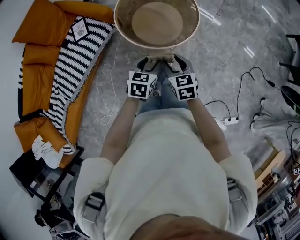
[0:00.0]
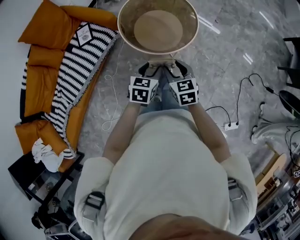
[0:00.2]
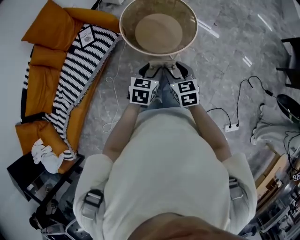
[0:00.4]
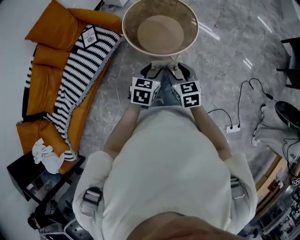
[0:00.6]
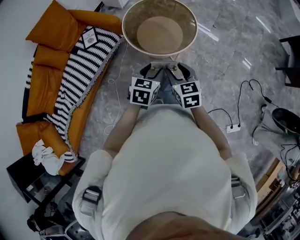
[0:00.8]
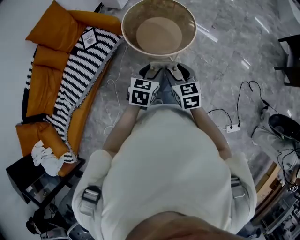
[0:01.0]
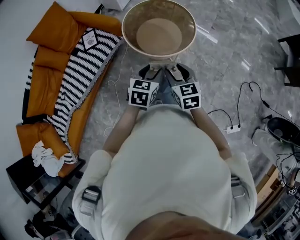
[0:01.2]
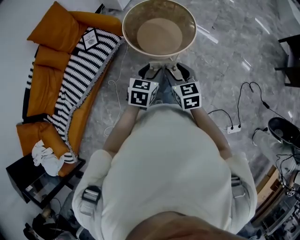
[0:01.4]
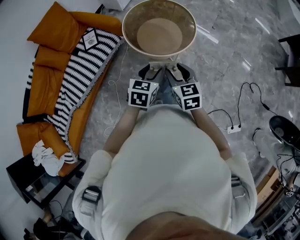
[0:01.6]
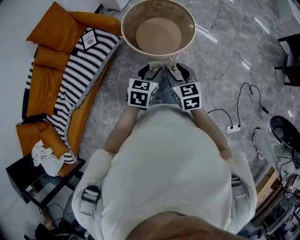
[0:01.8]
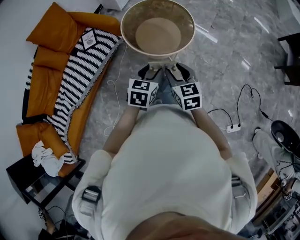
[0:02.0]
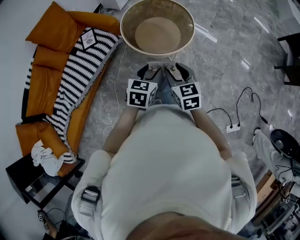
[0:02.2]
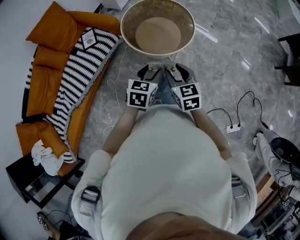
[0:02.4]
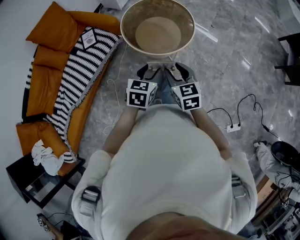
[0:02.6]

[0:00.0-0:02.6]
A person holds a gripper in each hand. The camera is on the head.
0:00.0 to 0:01.2: The two grippers go roughly 10 cm upward and backward.
0:01.2 to 0:02.6: Both grippers stay about where they are.

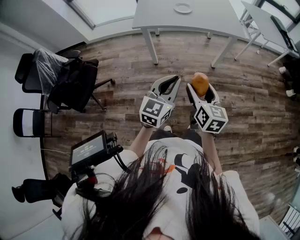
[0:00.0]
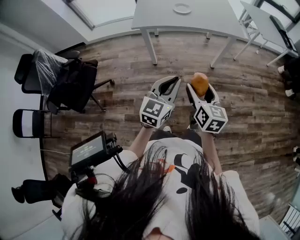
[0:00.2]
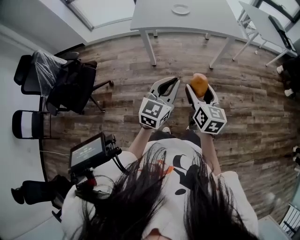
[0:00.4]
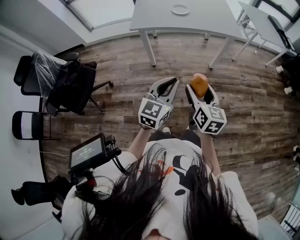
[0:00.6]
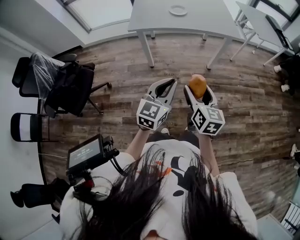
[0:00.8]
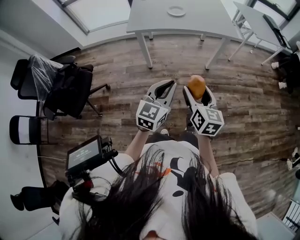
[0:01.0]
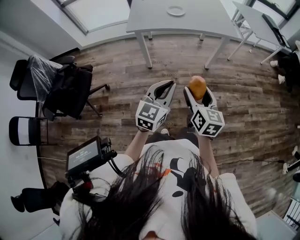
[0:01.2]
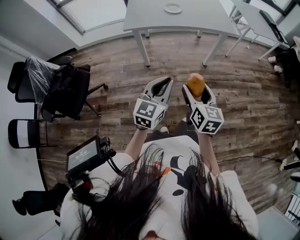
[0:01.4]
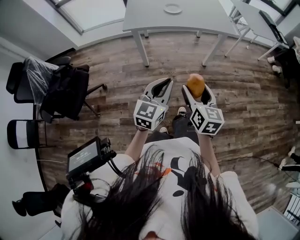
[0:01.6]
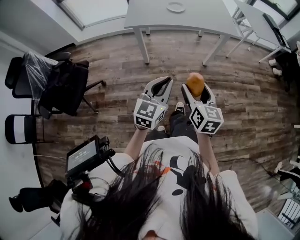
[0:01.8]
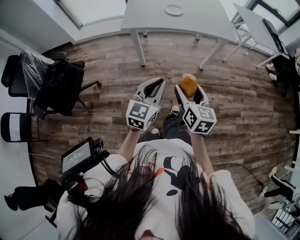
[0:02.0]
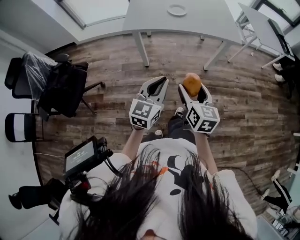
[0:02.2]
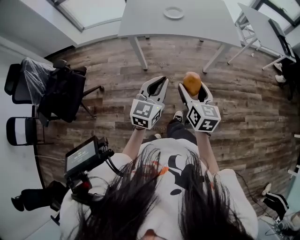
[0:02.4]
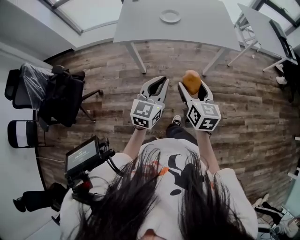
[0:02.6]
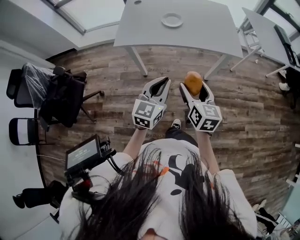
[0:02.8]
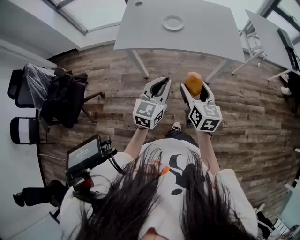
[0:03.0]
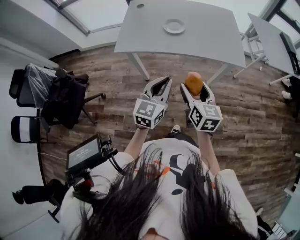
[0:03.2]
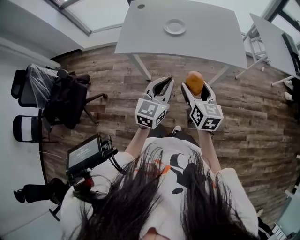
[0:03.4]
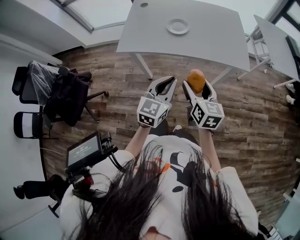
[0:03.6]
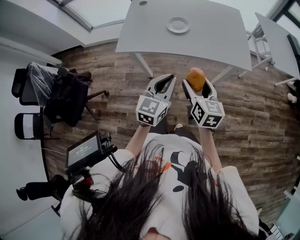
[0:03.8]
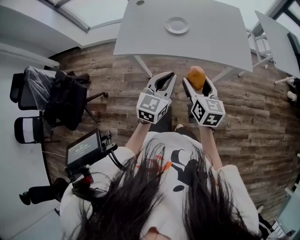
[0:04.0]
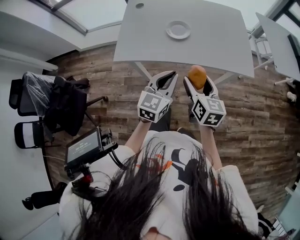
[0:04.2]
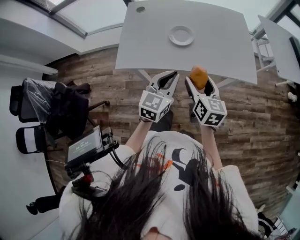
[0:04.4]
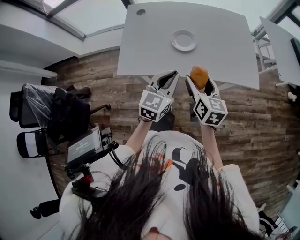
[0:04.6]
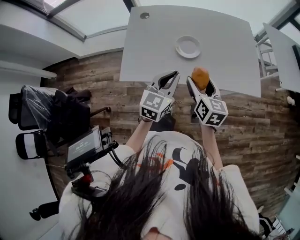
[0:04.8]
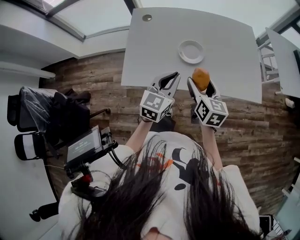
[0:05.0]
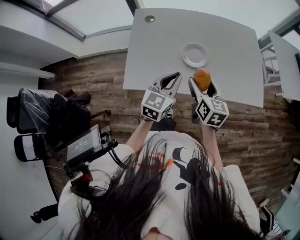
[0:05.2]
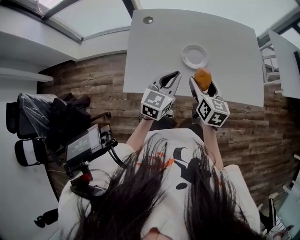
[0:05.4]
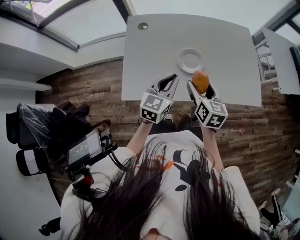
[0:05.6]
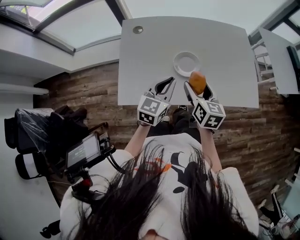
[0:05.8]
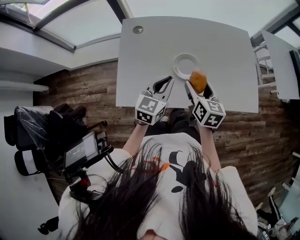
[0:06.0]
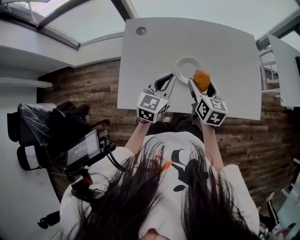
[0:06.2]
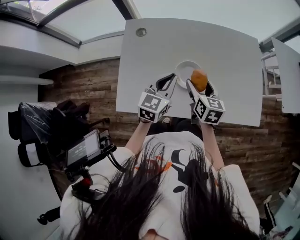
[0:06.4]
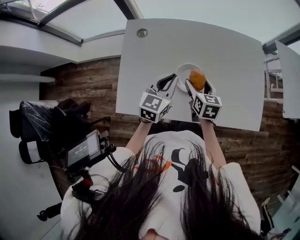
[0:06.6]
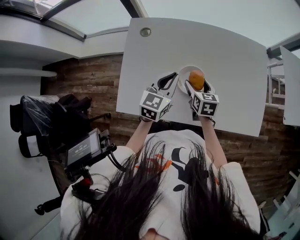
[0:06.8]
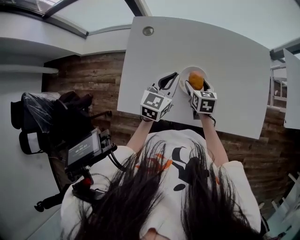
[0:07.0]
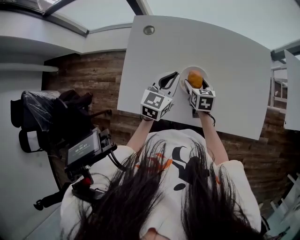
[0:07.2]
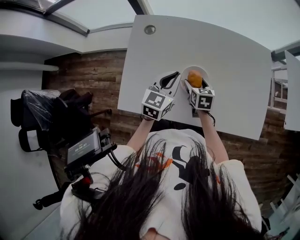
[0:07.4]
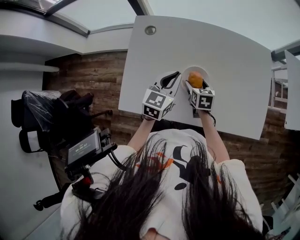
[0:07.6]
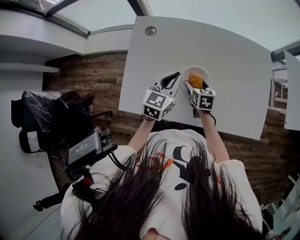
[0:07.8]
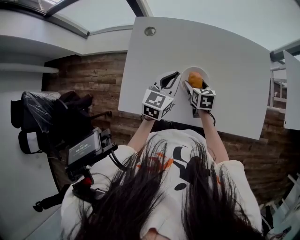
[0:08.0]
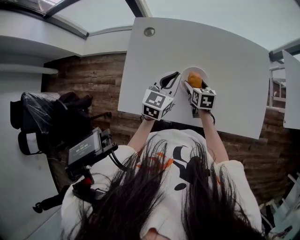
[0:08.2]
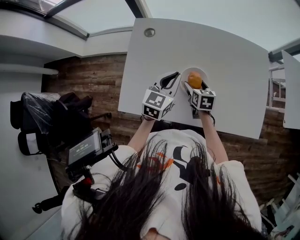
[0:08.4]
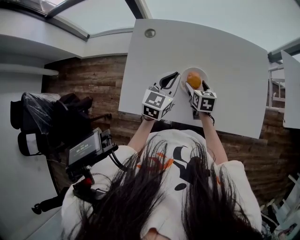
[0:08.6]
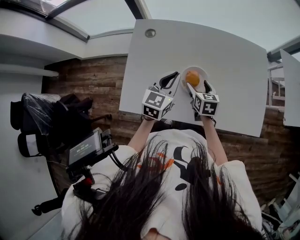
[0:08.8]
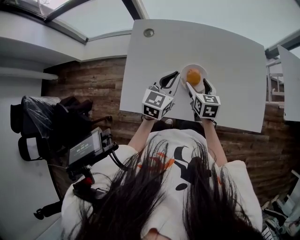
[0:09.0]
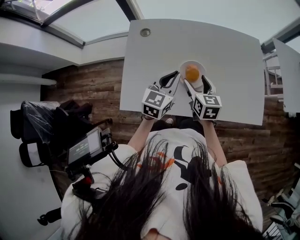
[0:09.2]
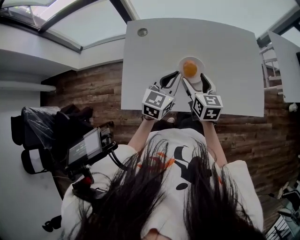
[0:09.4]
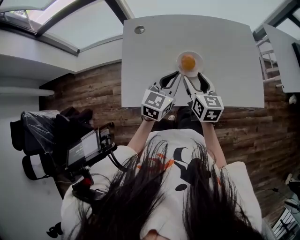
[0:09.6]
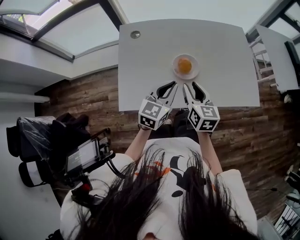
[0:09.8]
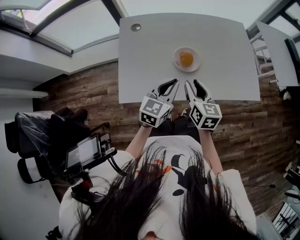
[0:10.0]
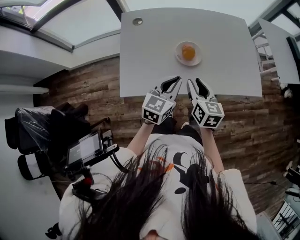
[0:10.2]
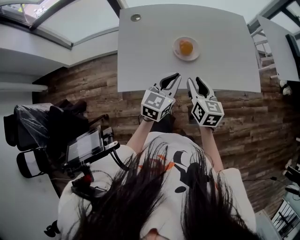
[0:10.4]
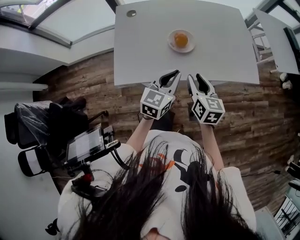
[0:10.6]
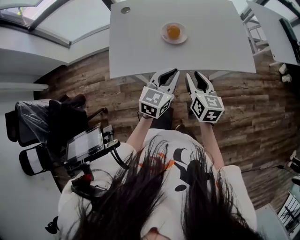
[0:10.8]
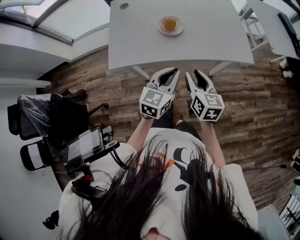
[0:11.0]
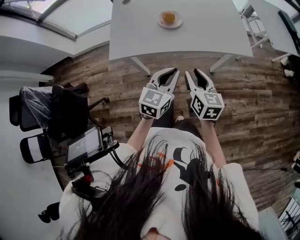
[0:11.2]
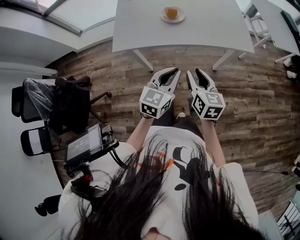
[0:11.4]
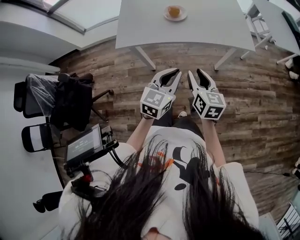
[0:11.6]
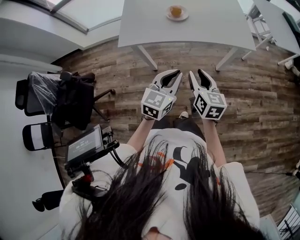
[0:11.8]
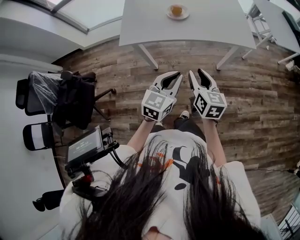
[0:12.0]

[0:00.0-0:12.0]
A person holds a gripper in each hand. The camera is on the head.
0:00.0 to 0:01.6: The grippers move only a little.
0:01.6 to 0:03.0: The two grippers go about 25 cm forward.
0:03.0 to 0:04.4: Both grippers travel together forward, some 20 cm.
0:04.4 to 0:06.0: The left gripper shifts roughly 20 cm forward and to the left. Meanwhile the right gripper heads forward, covering roughly 20 cm.
0:06.0 to 0:07.6: The right gripper heads downward and forward, covering roughly 20 cm, and swivels some 30 degrees; the left gripper moves forward, approximately 10 cm.
0:07.6 to 0:09.0: The right gripper shifts some 5 cm upward.
0:09.0 to 0:10.4: The left gripper is displaced backward by about 15 cm. Meanwhile the right gripper travels backward and upward by about 20 cm, and closes up.
0:10.4 to 0:12.0: The grippers both shift backward and to the right by roughly 30 cm.

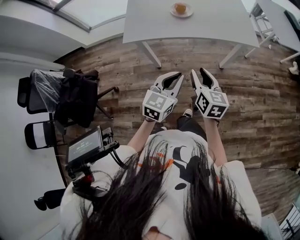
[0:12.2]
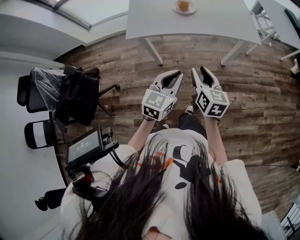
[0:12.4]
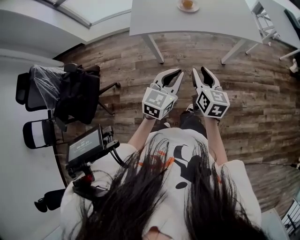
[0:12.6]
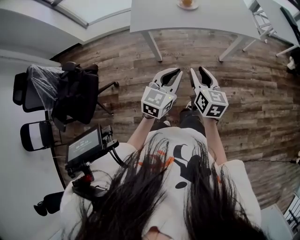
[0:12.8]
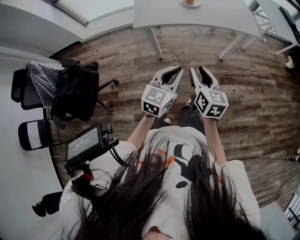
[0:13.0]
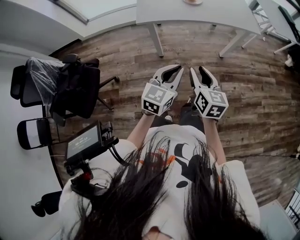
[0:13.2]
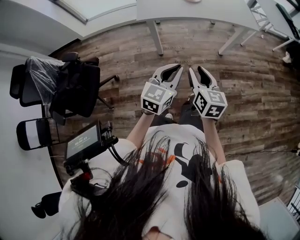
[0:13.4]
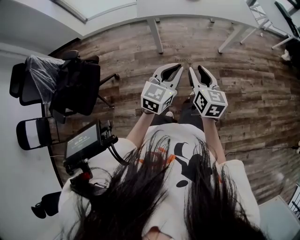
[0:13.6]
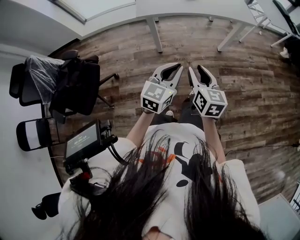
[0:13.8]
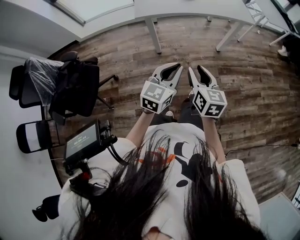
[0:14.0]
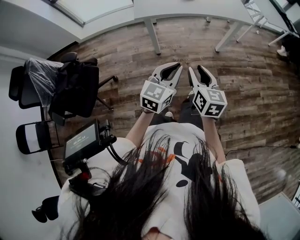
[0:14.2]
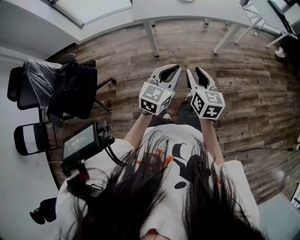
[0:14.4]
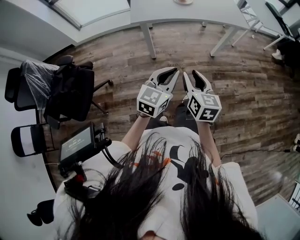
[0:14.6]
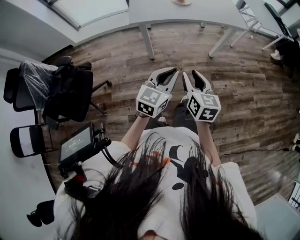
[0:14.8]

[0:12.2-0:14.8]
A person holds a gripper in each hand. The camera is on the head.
0:12.2 to 0:13.4: The two grippers go roughly 25 cm backward and to the left.
0:13.4 to 0:14.8: There are only small adjustments of the grippers.

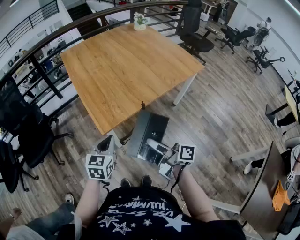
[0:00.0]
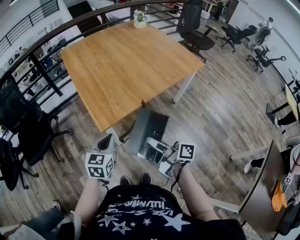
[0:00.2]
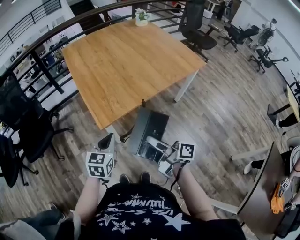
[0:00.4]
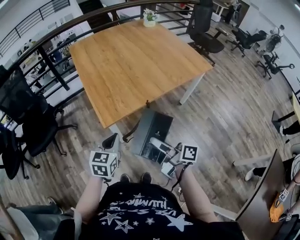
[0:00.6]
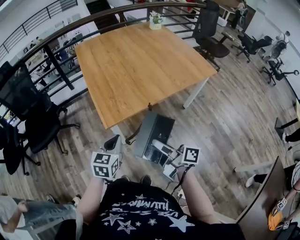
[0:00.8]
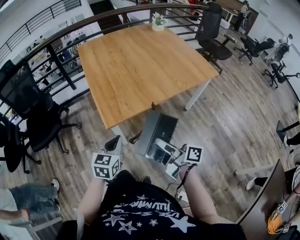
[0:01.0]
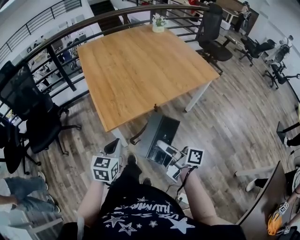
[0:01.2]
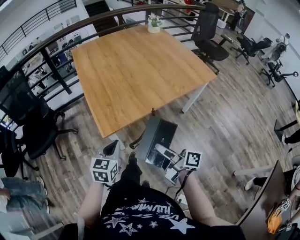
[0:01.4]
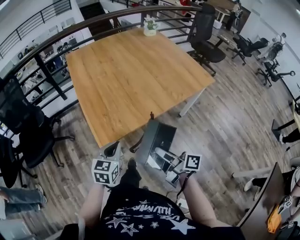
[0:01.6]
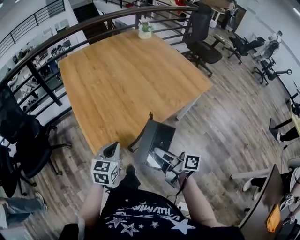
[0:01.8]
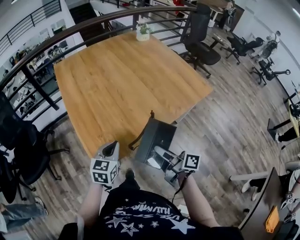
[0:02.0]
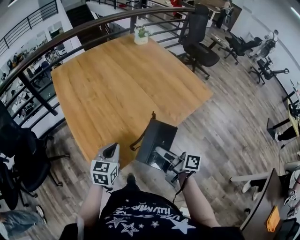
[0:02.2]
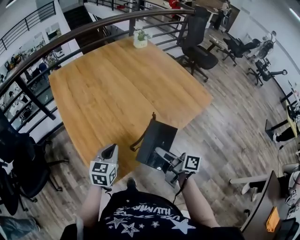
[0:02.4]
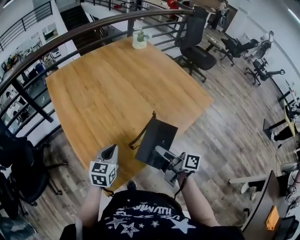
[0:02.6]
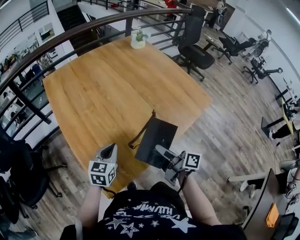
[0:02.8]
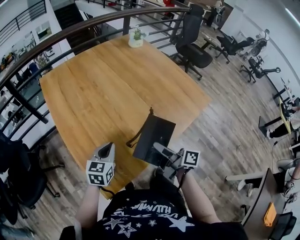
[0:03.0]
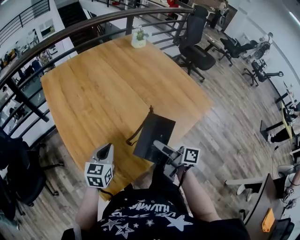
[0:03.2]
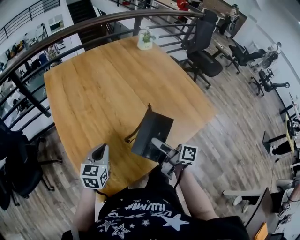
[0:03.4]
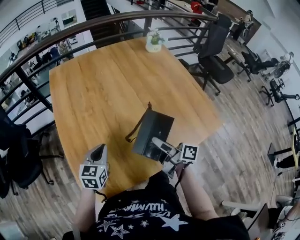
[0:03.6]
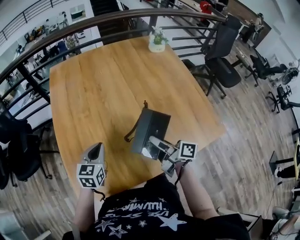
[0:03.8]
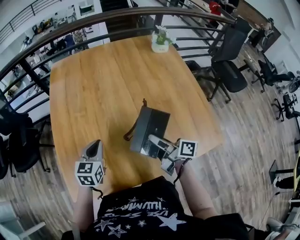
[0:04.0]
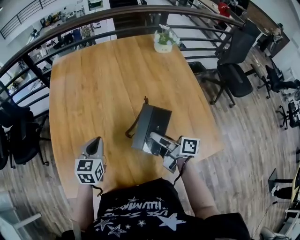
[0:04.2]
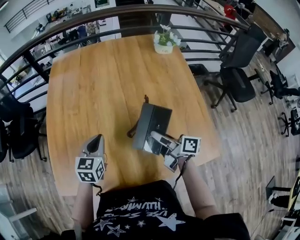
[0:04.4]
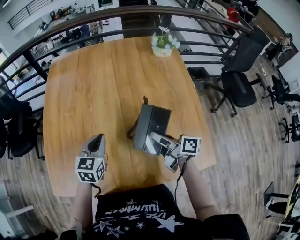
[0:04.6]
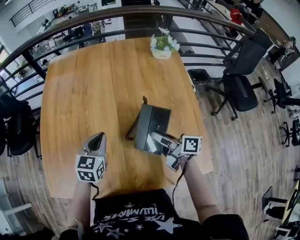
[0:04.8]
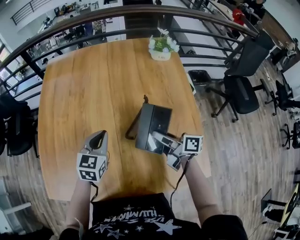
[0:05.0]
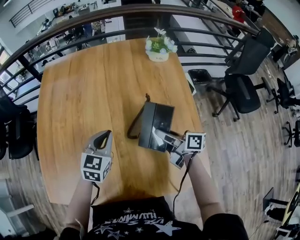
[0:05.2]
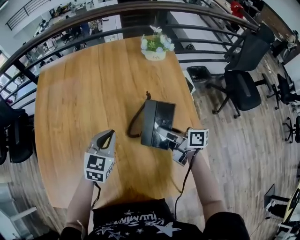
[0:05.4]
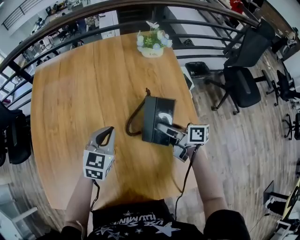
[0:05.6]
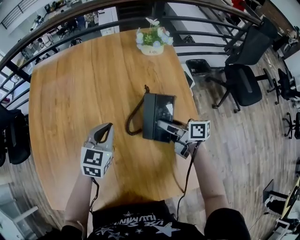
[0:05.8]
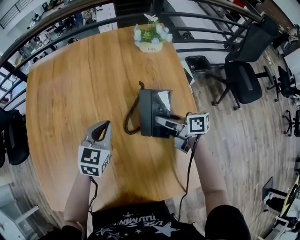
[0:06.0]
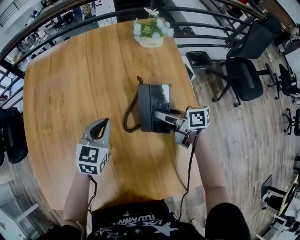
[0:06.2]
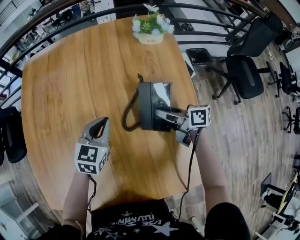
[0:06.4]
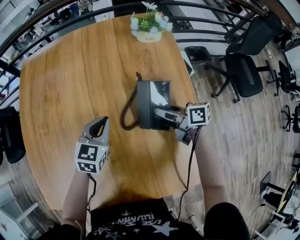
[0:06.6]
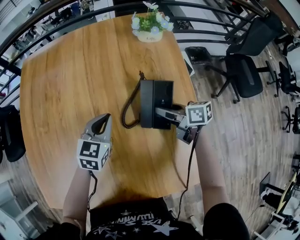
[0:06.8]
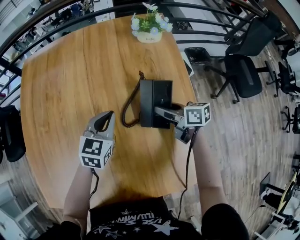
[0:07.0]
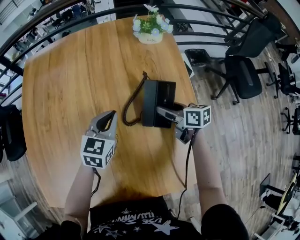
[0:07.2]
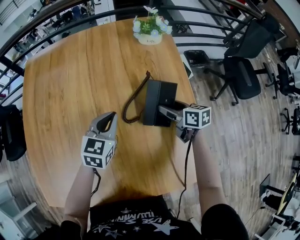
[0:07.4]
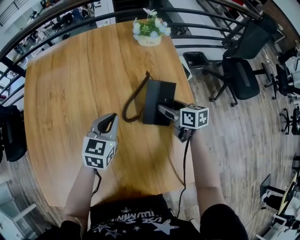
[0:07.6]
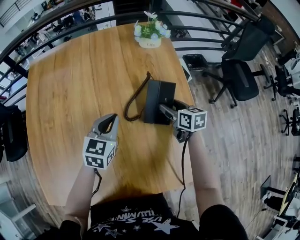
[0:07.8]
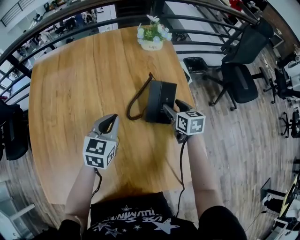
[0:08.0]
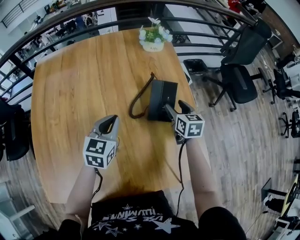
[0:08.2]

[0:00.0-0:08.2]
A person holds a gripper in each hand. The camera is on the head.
0:00.0 to 0:01.6: The left gripper moves forward, roughly 5 cm. Meanwhile the right gripper heads to the right and forward, covering approximately 10 cm.
0:01.6 to 0:03.2: Both grippers move forward, some 25 cm.
0:03.2 to 0:05.0: The left gripper moves roughly 30 cm, and changes its angle by about 30 degrees. The right gripper shifts by approximately 35 cm, and changes its angle by some 40 degrees.
0:05.0 to 0:06.6: The two grippers go approximately 15 cm to the right and forward.
0:06.6 to 0:08.2: The right gripper goes approximately 5 cm to the right, rotates approximately 60 degrees, and opens its fingers. The left gripper shifts by approximately 5 cm.
